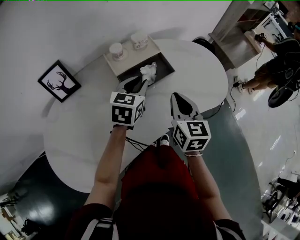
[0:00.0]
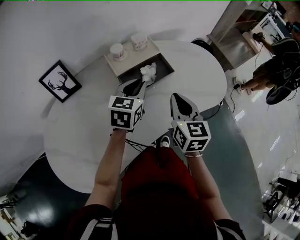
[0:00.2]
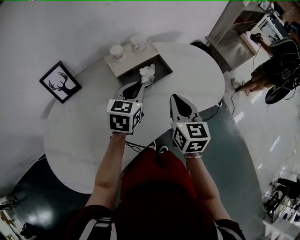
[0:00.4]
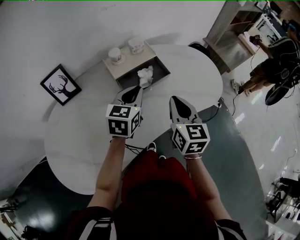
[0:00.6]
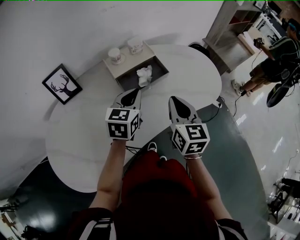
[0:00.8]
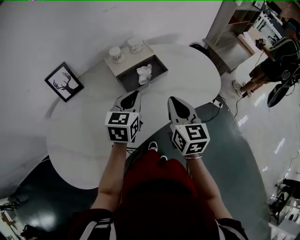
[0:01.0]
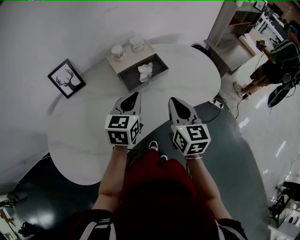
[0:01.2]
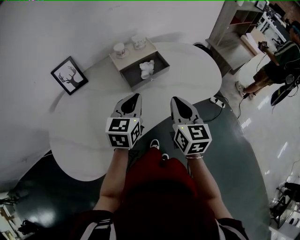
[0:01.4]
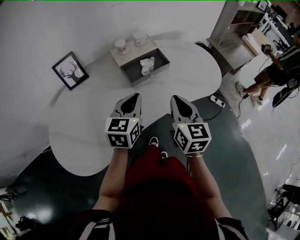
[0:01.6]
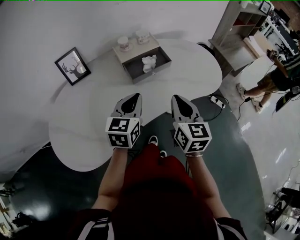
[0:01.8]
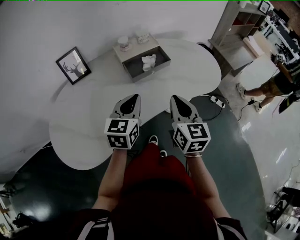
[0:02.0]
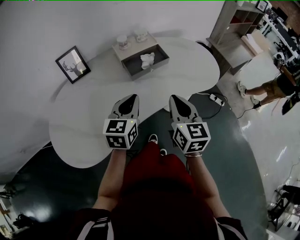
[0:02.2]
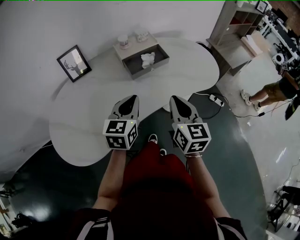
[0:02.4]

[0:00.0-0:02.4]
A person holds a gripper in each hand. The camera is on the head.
0.0 to 1.2 s: The grippers both shift backward by roughly 10 cm. The left gripper closes its fingers.
1.2 to 2.4 s: Both grippers travel together backward, some 10 cm.

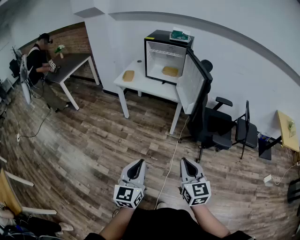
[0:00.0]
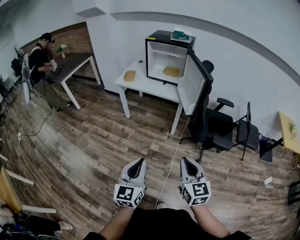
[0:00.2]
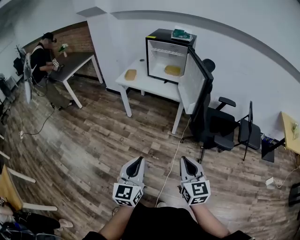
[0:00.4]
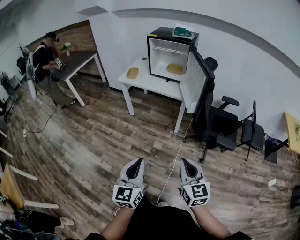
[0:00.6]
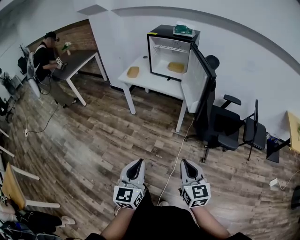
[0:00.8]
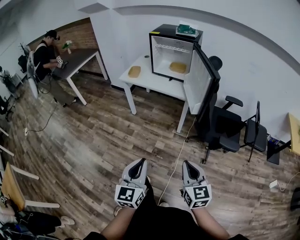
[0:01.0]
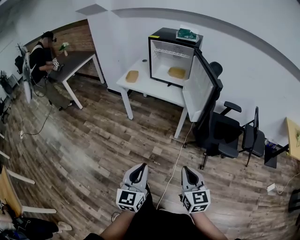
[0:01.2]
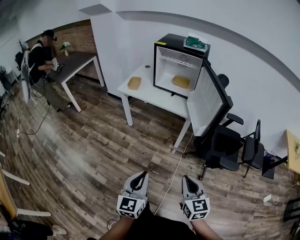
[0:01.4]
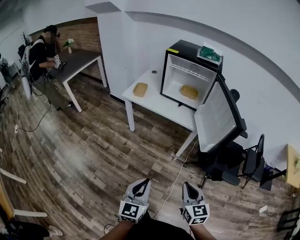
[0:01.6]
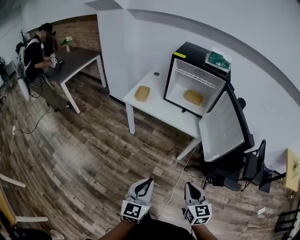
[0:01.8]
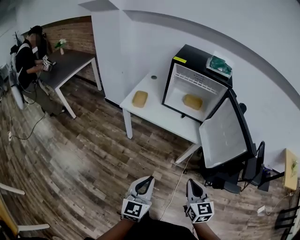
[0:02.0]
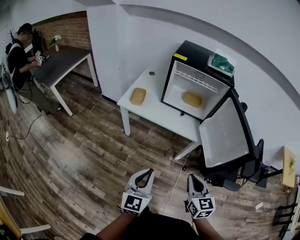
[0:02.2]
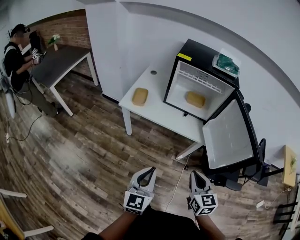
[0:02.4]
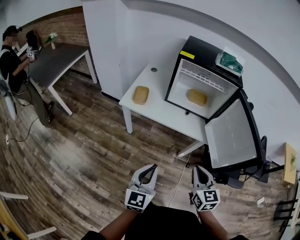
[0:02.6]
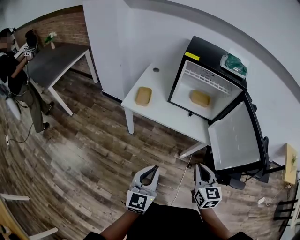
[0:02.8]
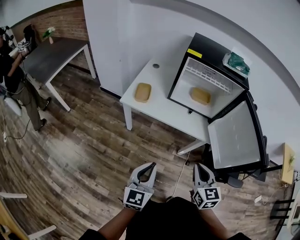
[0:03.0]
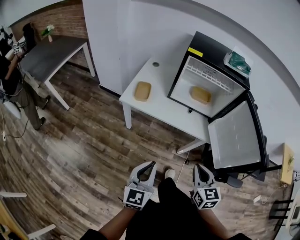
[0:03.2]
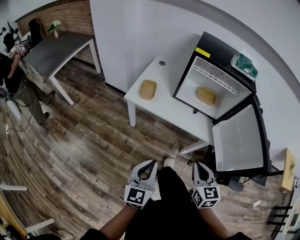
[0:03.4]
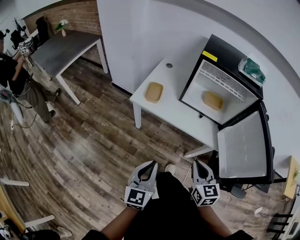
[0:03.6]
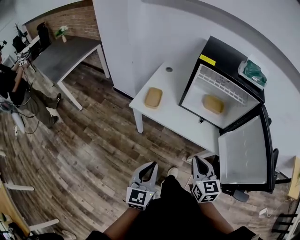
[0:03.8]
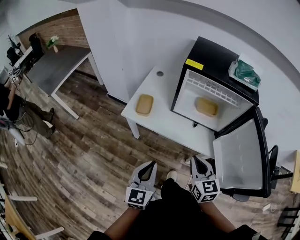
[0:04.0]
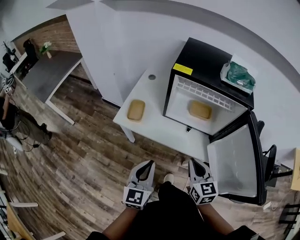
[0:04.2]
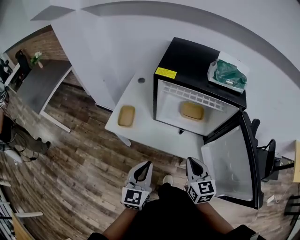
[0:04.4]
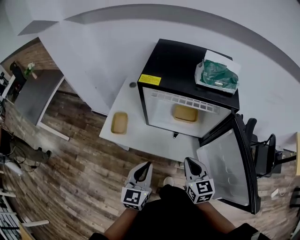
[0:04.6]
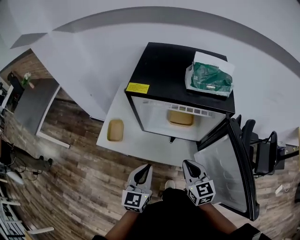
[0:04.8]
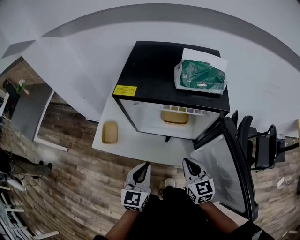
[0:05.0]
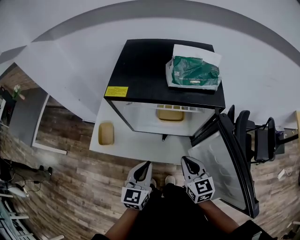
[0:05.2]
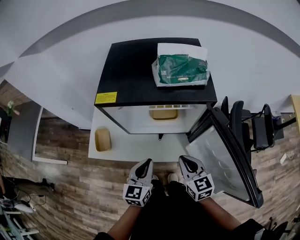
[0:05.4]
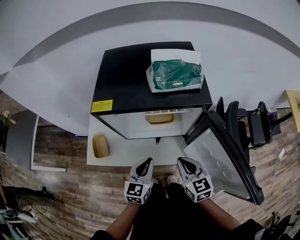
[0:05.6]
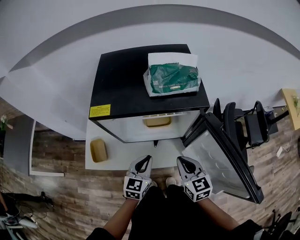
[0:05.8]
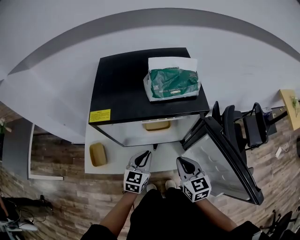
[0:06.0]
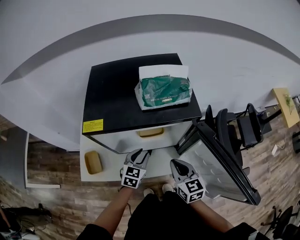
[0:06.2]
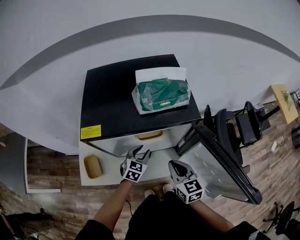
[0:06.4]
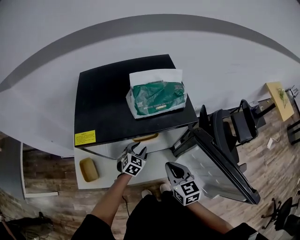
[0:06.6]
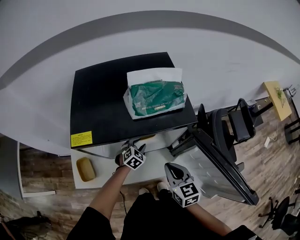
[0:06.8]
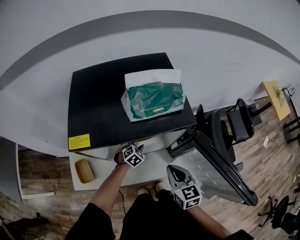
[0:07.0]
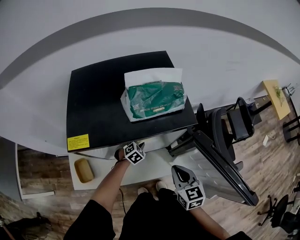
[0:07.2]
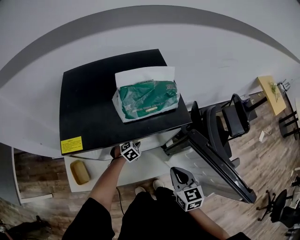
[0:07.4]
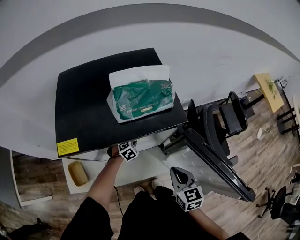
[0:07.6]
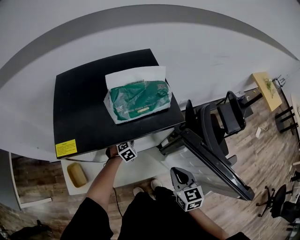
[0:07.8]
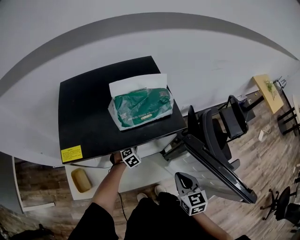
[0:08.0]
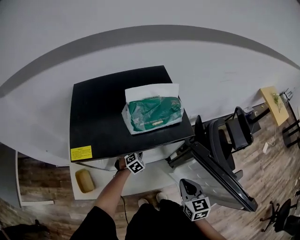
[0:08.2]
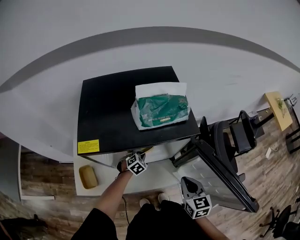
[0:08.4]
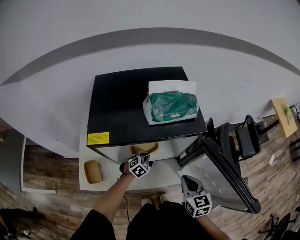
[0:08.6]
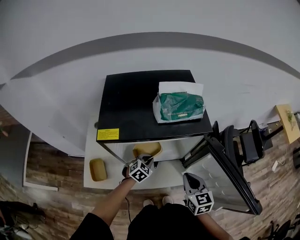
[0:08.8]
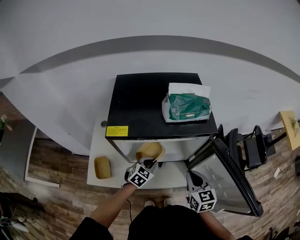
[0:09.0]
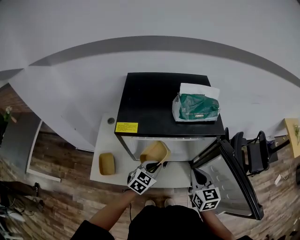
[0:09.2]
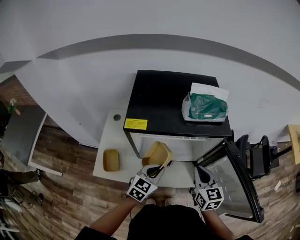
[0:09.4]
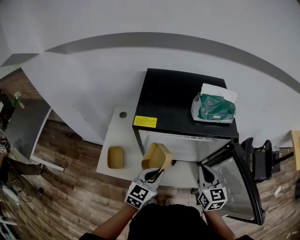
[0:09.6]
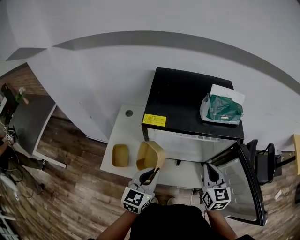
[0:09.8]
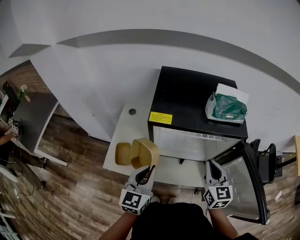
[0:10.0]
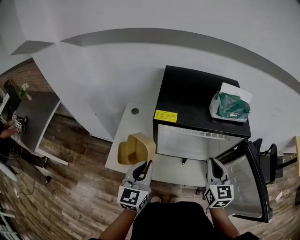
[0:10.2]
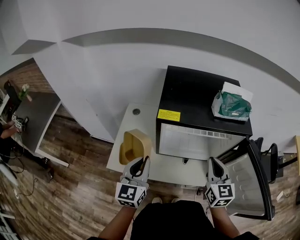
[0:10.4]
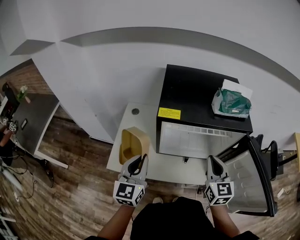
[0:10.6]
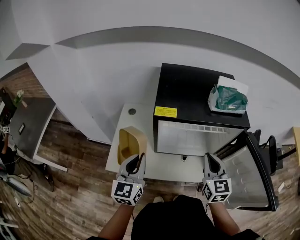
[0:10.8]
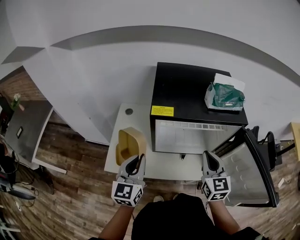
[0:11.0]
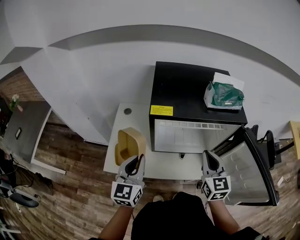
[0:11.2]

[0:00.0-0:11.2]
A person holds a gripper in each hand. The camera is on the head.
0.0 to 1.6 s: The two grippers go about 20 cm forward.
1.6 to 3.2 s: Both grippers move forward and to the left, approximately 30 cm.
3.2 to 4.8 s: Both grippers move forward and to the right, some 30 cm.
4.8 to 6.4 s: The right gripper heads forward, covering roughly 5 cm. The left gripper travels forward and downward by some 25 cm, rotates approximately 40 degrees, and opens up.
6.4 to 8.0 s: The right gripper moves to the right, approximately 10 cm. The left gripper heads downward and forward, covering about 15 cm, turns by approximately 40 degrees, and closes up.
8.0 to 9.6 s: The right gripper heads to the left and upward, covering some 15 cm. The left gripper is displaced upward and backward by some 35 cm, and tips its fingers upward by about 40 degrees.
9.6 to 11.2 s: The right gripper heads to the left, covering about 5 cm. Meanwhile the left gripper goes about 15 cm to the left and upward, and swivels some 20 degrees.

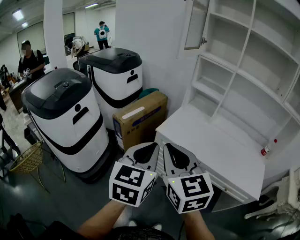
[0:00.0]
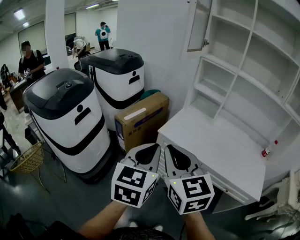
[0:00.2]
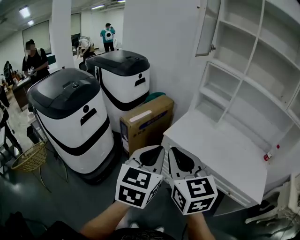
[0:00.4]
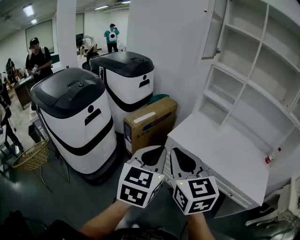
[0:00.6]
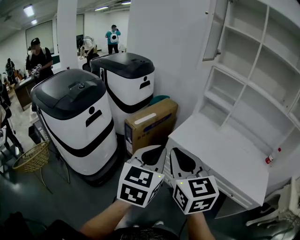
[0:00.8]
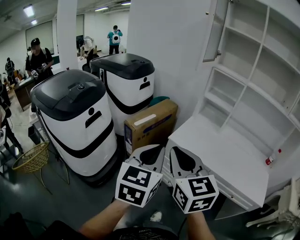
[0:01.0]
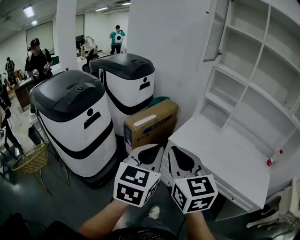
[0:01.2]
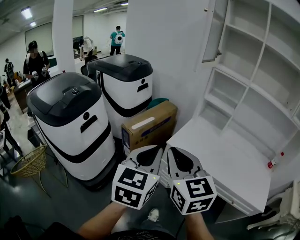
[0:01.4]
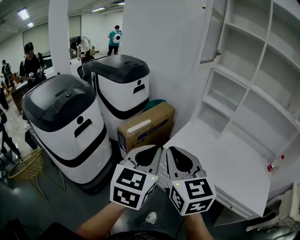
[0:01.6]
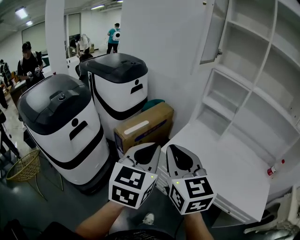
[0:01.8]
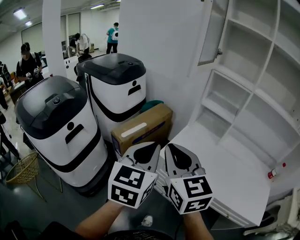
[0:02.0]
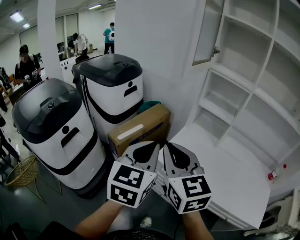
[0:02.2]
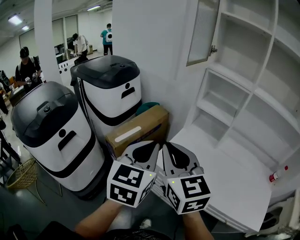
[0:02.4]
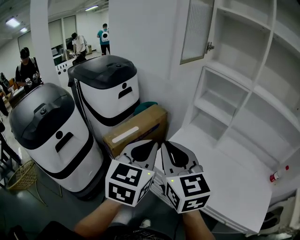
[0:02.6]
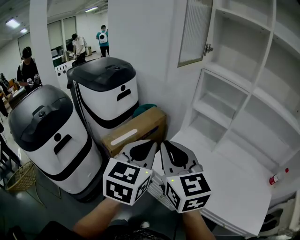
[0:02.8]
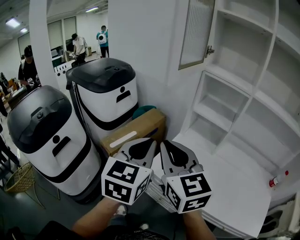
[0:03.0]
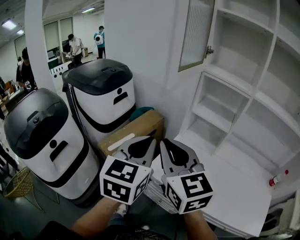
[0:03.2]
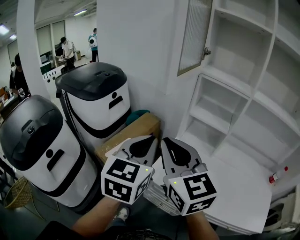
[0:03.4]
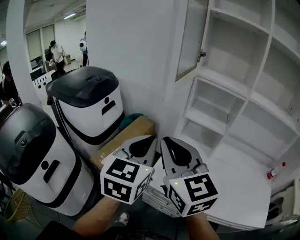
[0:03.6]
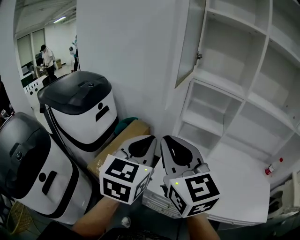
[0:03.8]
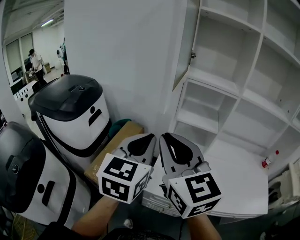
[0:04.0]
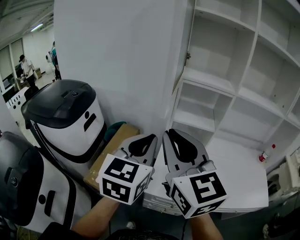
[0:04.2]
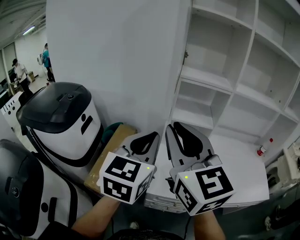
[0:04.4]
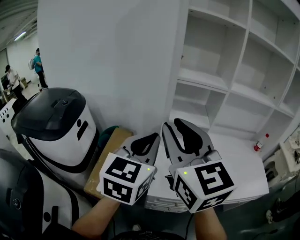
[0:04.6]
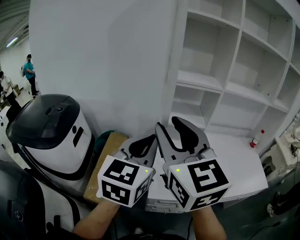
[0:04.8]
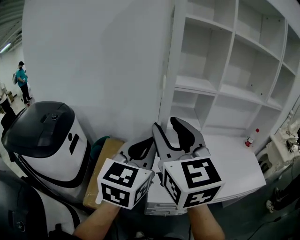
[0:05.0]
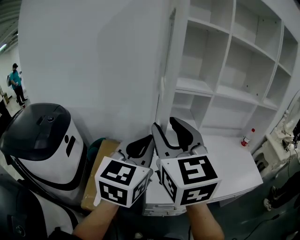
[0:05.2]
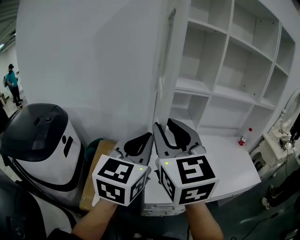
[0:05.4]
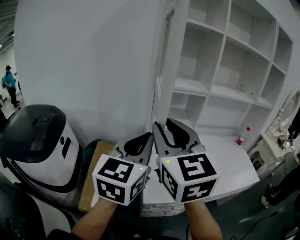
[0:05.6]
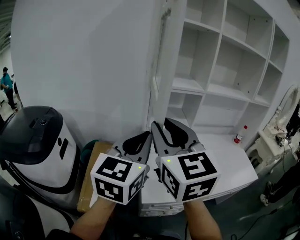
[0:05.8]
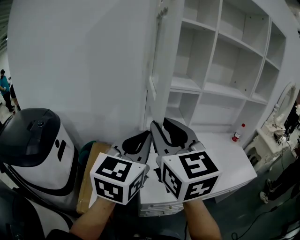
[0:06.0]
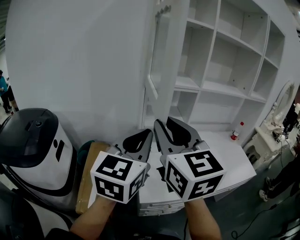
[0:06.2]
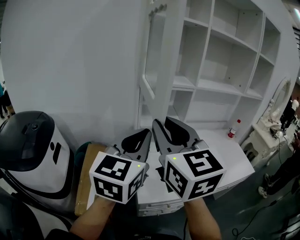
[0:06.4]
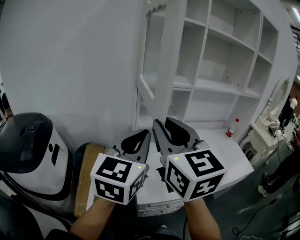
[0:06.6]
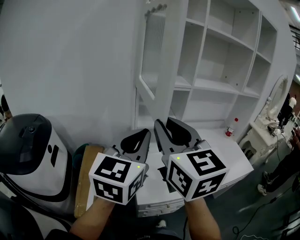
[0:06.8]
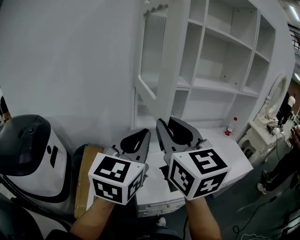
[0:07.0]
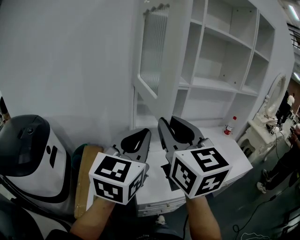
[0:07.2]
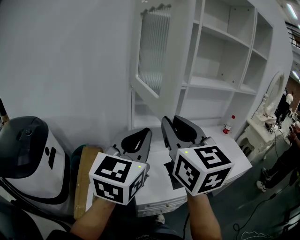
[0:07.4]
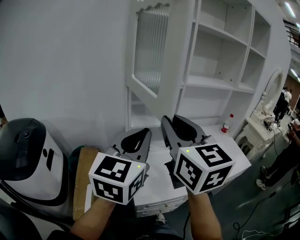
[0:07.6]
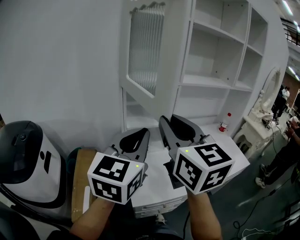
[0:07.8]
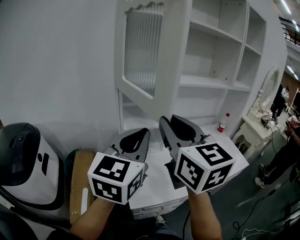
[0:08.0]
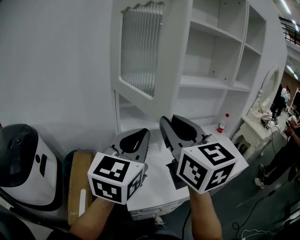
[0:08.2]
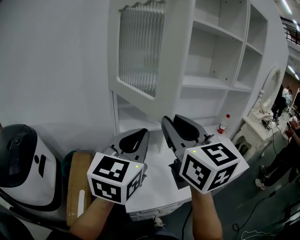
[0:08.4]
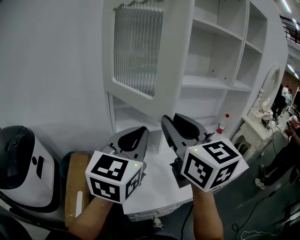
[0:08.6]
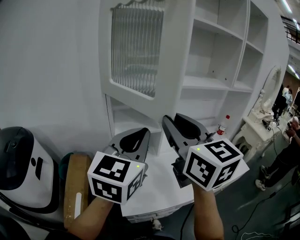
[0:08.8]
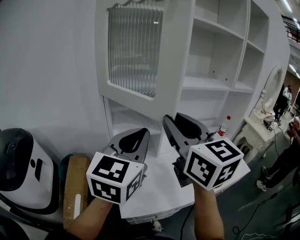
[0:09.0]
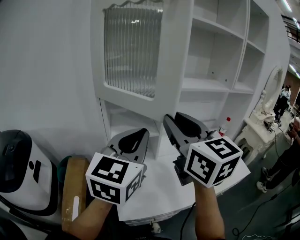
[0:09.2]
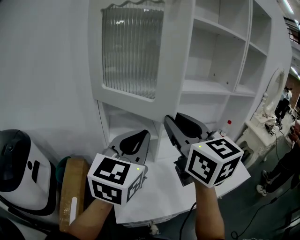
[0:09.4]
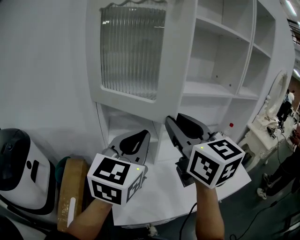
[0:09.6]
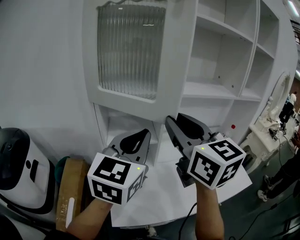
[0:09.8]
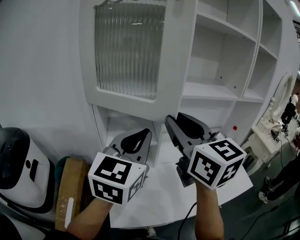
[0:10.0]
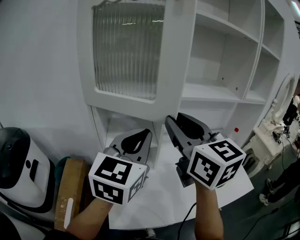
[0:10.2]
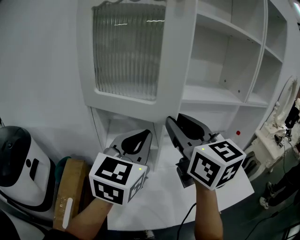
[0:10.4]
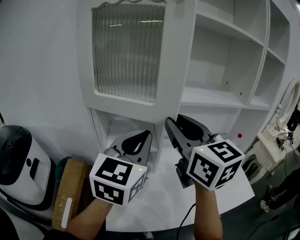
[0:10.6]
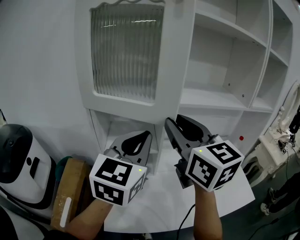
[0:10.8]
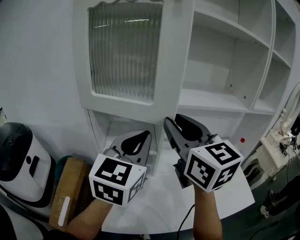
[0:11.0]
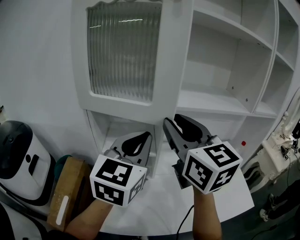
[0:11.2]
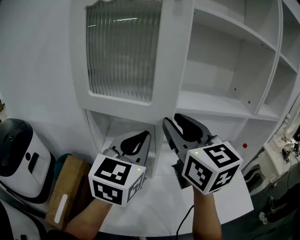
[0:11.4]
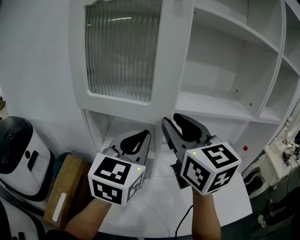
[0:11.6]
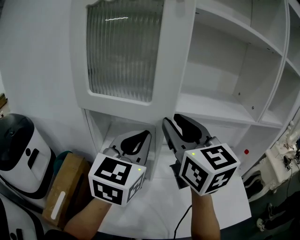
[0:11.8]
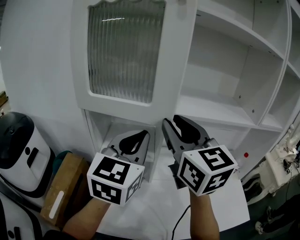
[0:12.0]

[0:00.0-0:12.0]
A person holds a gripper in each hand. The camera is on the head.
0.0 to 1.6 s: The grippers both shift forward by about 10 cm.
1.6 to 3.0 s: The grippers both shift forward and to the right by roughly 20 cm.
3.0 to 4.4 s: The left gripper ends up about 15 cm from where it was, and turns by roughly 30 degrees, while the right gripper changes place by roughly 15 cm, and swivels roughly 30 degrees.
4.4 to 6.0 s: The grippers move only a little.
6.0 to 7.6 s: The left gripper shifts by roughly 5 cm. Meanwhile the right gripper shifts approximately 10 cm to the right.
7.6 to 9.0 s: The right gripper goes some 10 cm to the right and forward. The left gripper goes roughly 10 cm forward and to the right.
9.0 to 10.4 s: The grippers both shift forward and to the right by roughly 10 cm.
10.4 to 12.0 s: The grippers both shift forward by roughly 5 cm.
